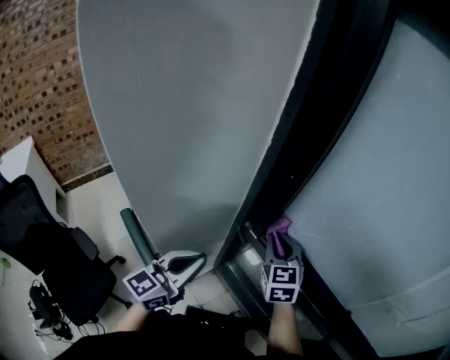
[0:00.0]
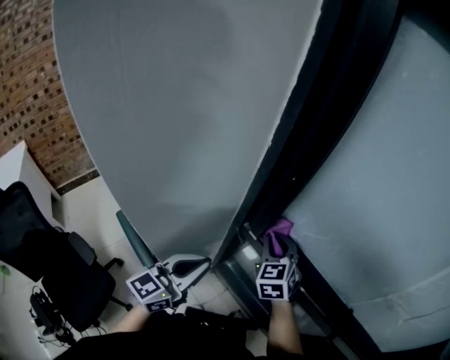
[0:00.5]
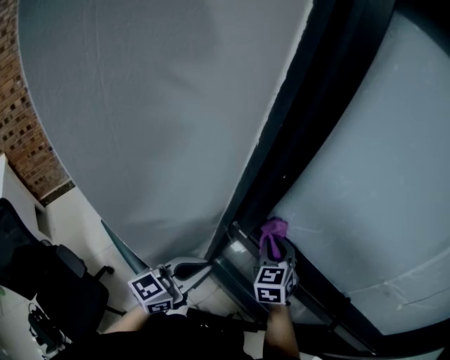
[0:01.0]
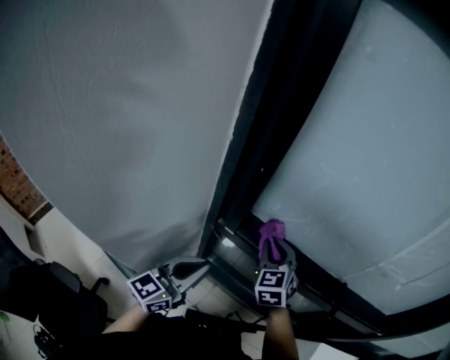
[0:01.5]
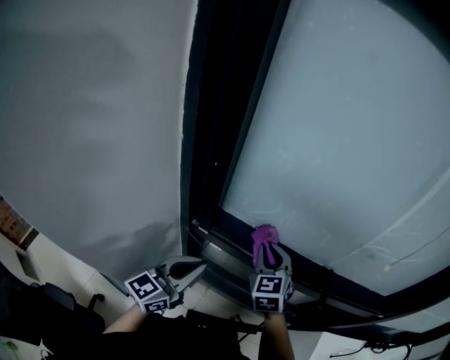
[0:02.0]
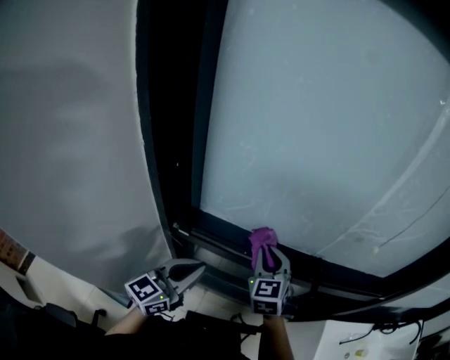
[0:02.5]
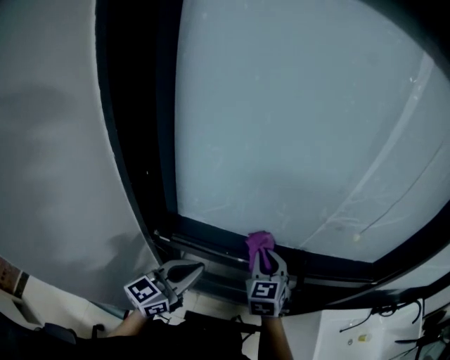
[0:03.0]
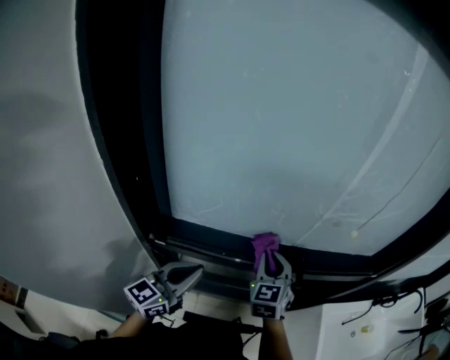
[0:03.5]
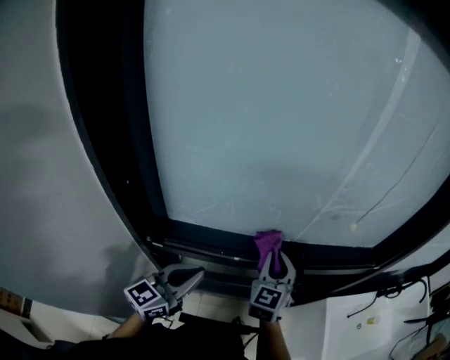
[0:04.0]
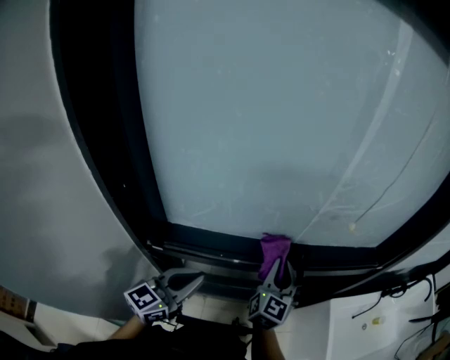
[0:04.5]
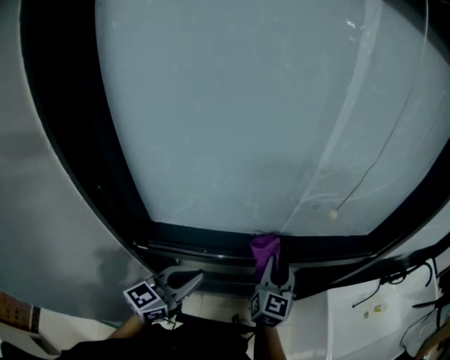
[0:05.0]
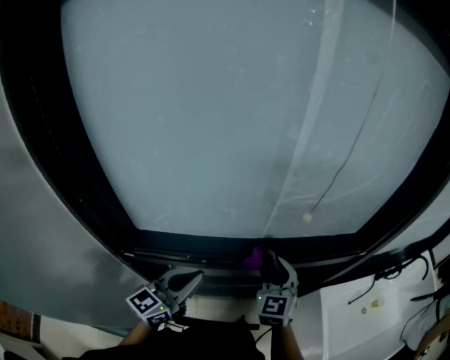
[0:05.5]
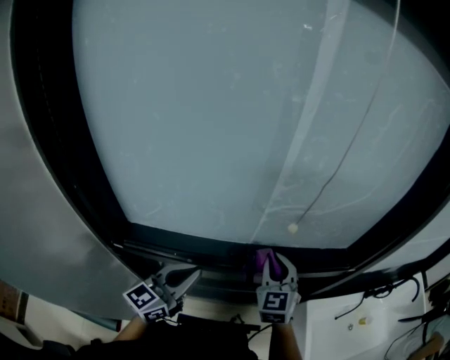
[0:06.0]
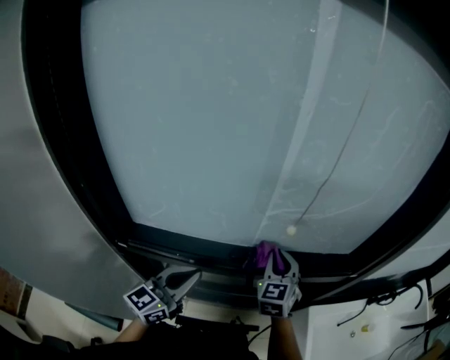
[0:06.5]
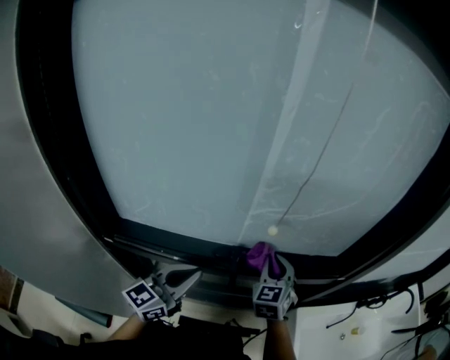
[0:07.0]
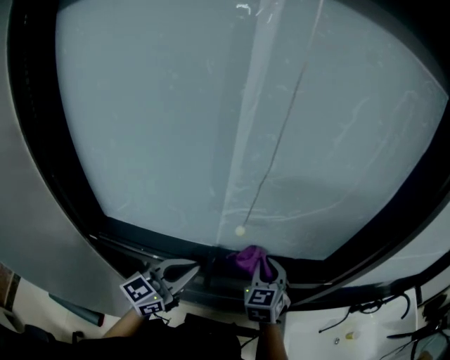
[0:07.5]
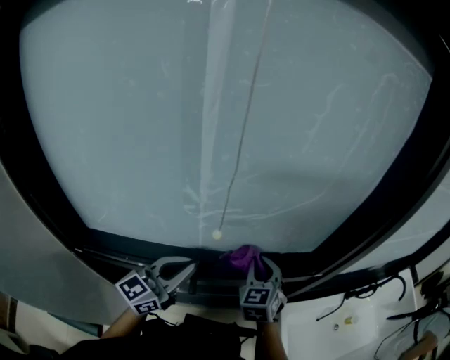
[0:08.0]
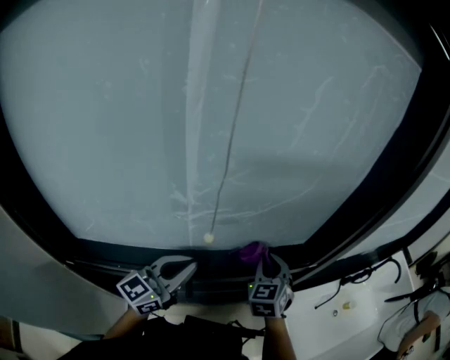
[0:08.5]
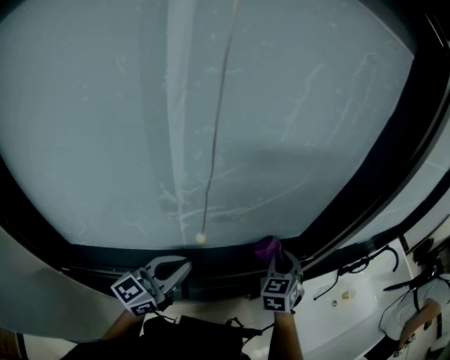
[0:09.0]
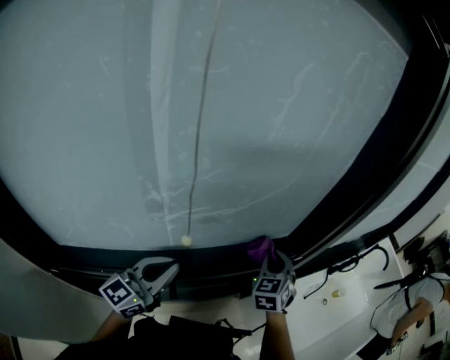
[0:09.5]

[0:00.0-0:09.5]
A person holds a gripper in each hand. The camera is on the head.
0:00.0 to 0:02.0: The right gripper moves approximately 15 cm, and turns by about 30 degrees. Meanwhile the left gripper shifts by about 10 cm, and changes its angle by roughly 30 degrees.
0:02.0 to 0:04.0: The left gripper travels to the right and forward by about 10 cm. The right gripper heads to the right, covering roughly 15 cm, and turns by approximately 30 degrees.
0:04.0 to 0:05.5: The grippers both shift to the right by about 10 cm.
0:05.5 to 0:07.5: The left gripper is displaced to the right and forward by approximately 15 cm; the right gripper travels forward and to the right by approximately 10 cm.
0:07.5 to 0:09.5: The left gripper shifts some 5 cm forward, while the right gripper travels to the right and forward by roughly 15 cm, and turns by roughly 20 degrees.

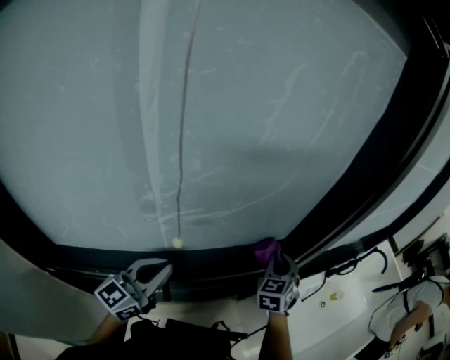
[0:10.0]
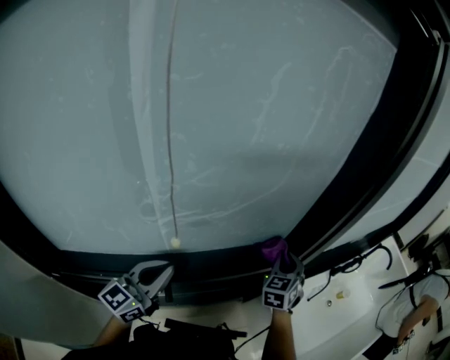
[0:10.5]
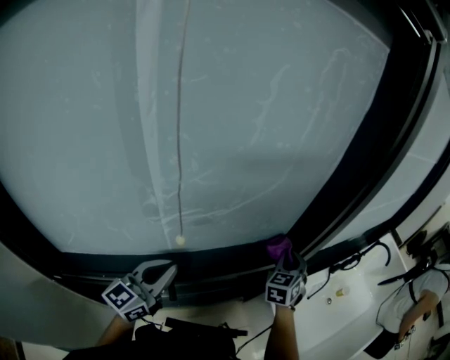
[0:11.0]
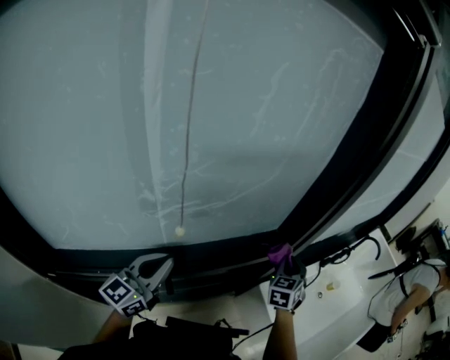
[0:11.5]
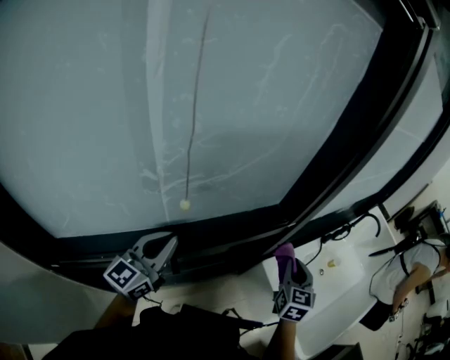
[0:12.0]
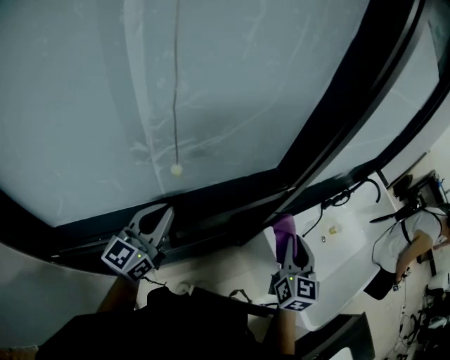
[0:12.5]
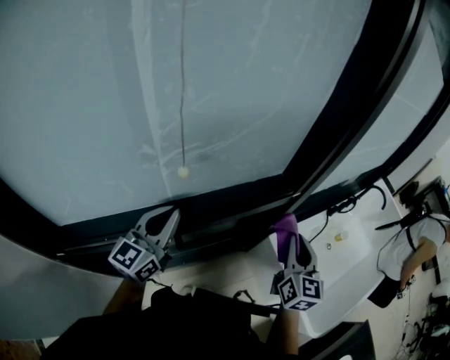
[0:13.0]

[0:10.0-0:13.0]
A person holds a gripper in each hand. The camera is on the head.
0:10.0 to 0:11.5: The right gripper is displaced to the right by about 10 cm.
0:11.5 to 0:13.0: The right gripper shifts about 15 cm backward, and turns by approximately 40 degrees.

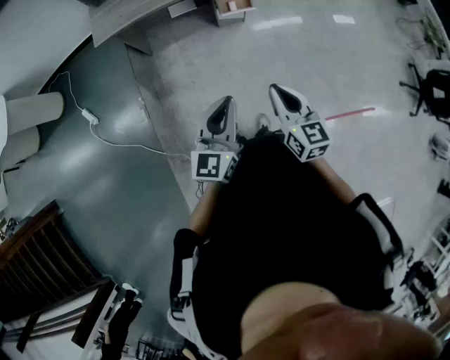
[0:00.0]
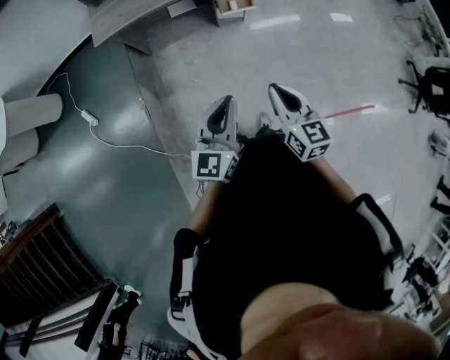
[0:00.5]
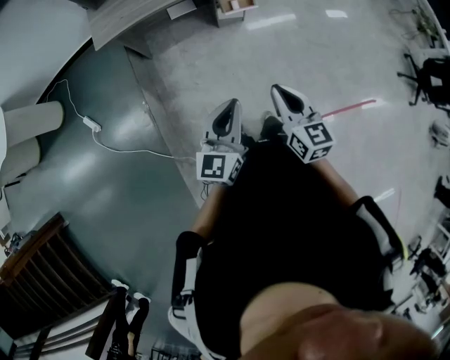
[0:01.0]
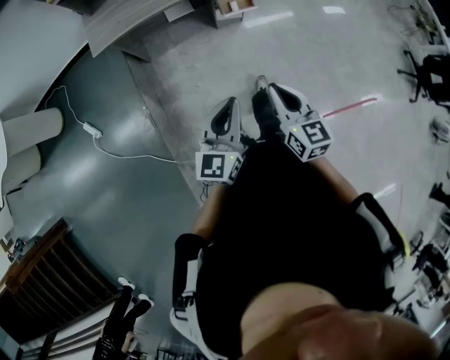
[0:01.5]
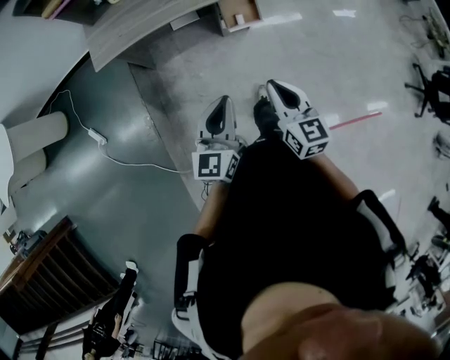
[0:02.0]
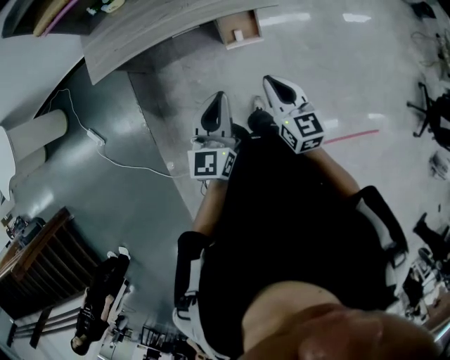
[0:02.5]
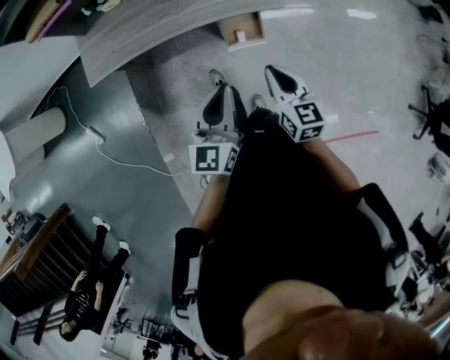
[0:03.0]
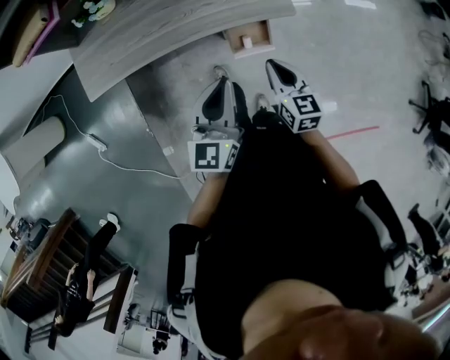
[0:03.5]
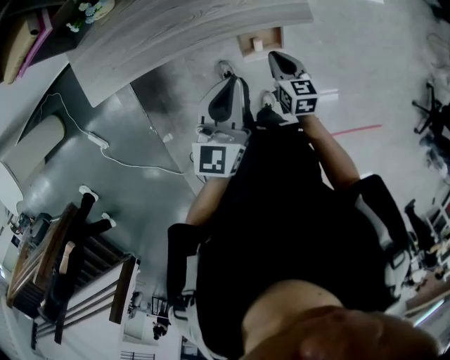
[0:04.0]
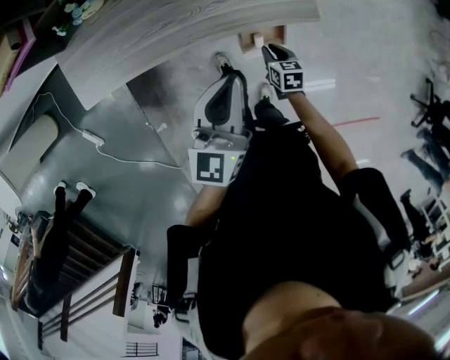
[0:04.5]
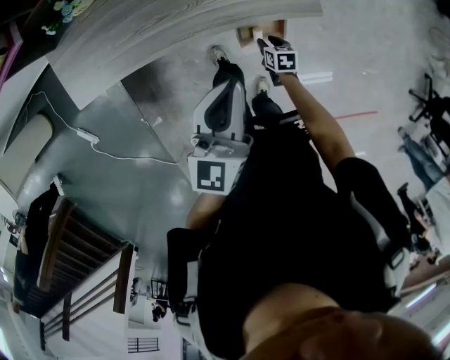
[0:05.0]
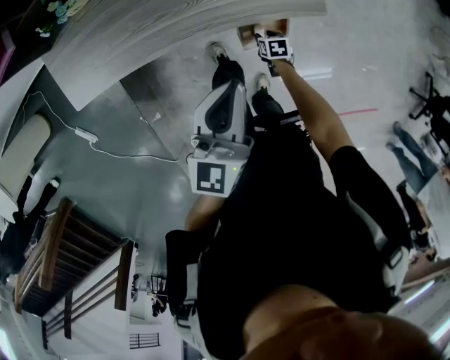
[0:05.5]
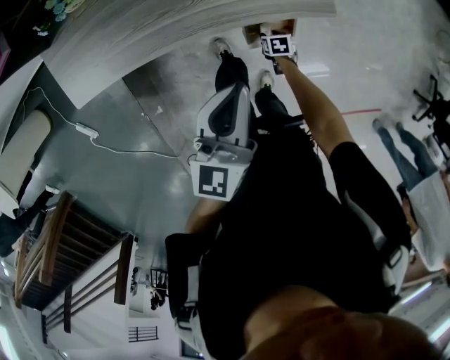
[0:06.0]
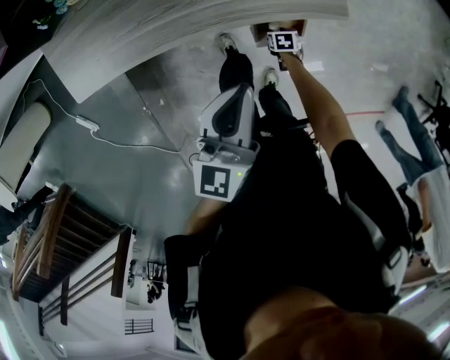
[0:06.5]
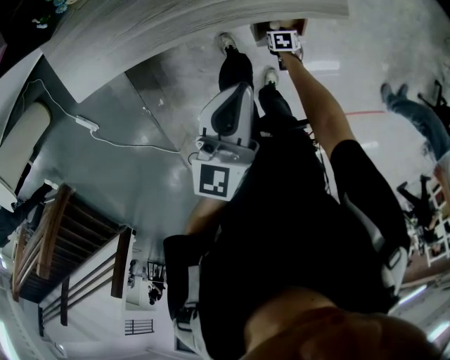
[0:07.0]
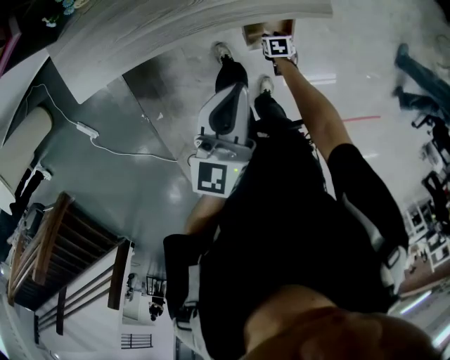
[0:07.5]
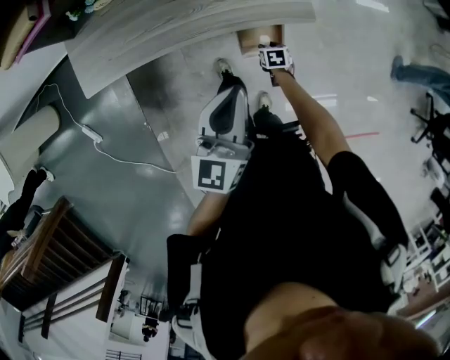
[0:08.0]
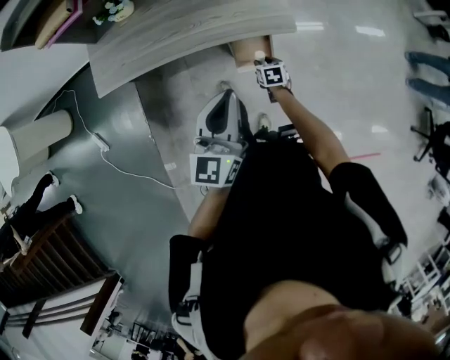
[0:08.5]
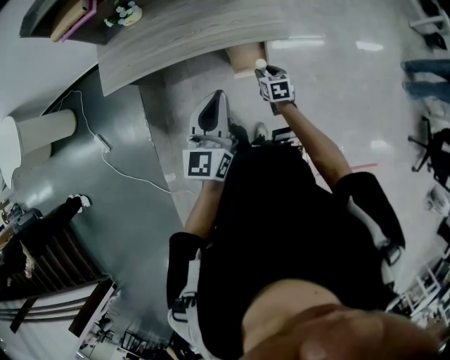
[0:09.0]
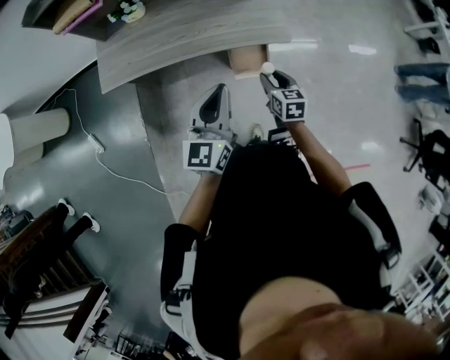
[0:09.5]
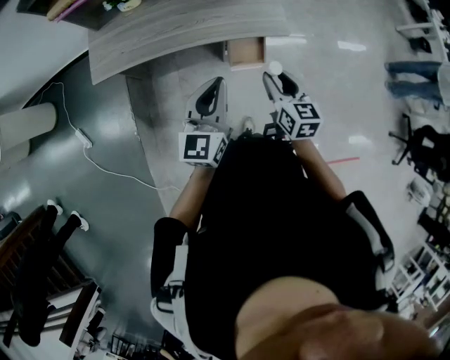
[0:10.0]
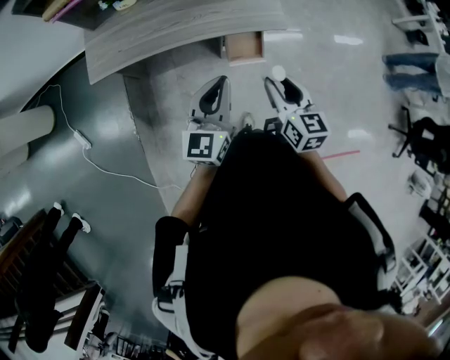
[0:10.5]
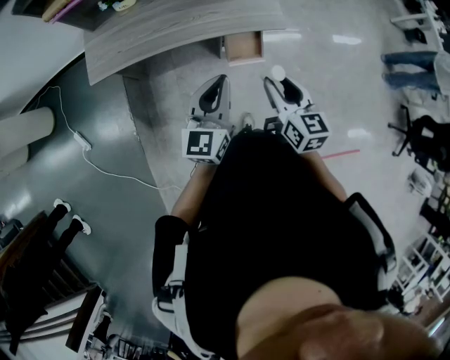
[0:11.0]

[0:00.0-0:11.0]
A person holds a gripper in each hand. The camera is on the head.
0:00.0 to 0:02.0: Both grippers move forward, roughly 15 cm.
0:02.0 to 0:03.5: The two grippers go approximately 35 cm forward.
0:03.5 to 0:05.5: The right gripper heads downward, covering about 40 cm, tilts its fingers approximately 40 degrees downward, and opens. Meanwhile the left gripper ends up some 10 cm from where it was.
0:07.5 to 0:09.0: The left gripper travels backward and upward by some 20 cm. The right gripper travels upward by about 30 cm, and turns by about 30 degrees.
0:09.0 to 0:11.0: The left gripper heads to the left, covering approximately 5 cm; the right gripper shifts some 30 cm upward and backward, and rotates some 30 degrees.

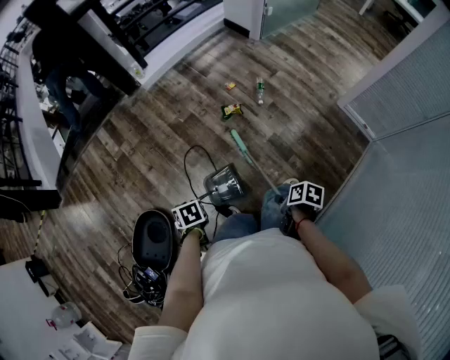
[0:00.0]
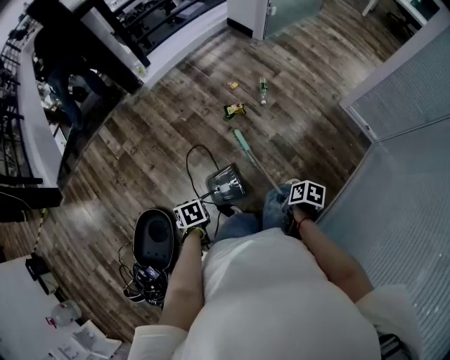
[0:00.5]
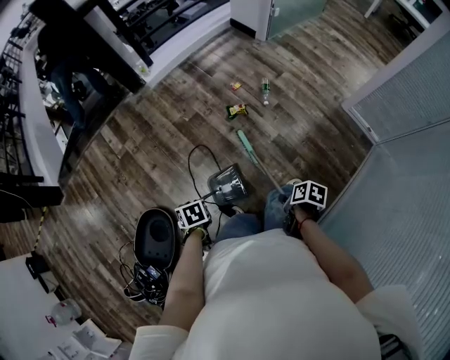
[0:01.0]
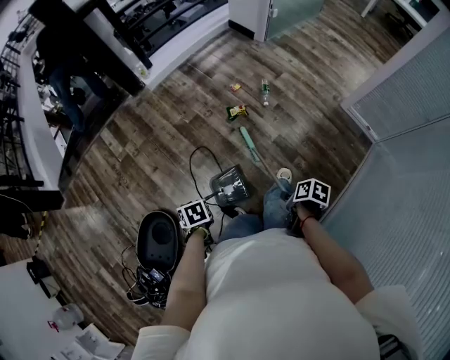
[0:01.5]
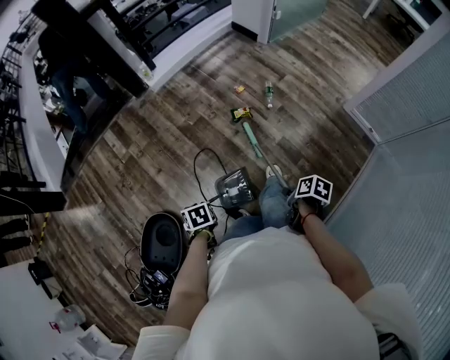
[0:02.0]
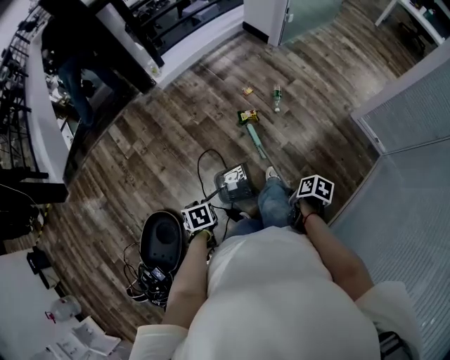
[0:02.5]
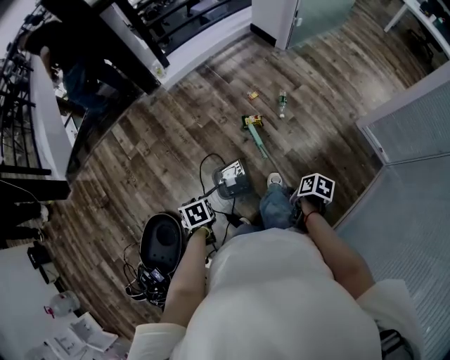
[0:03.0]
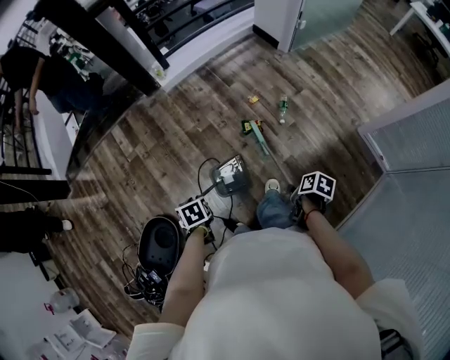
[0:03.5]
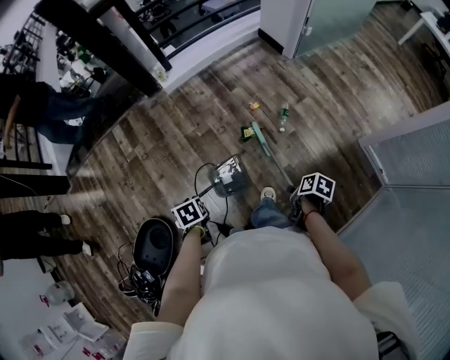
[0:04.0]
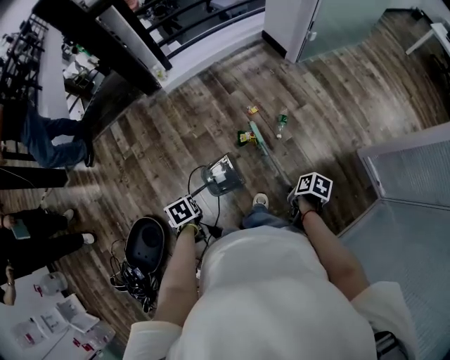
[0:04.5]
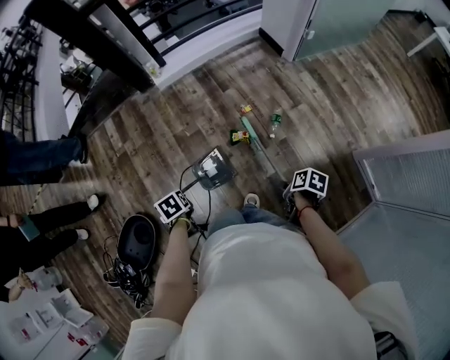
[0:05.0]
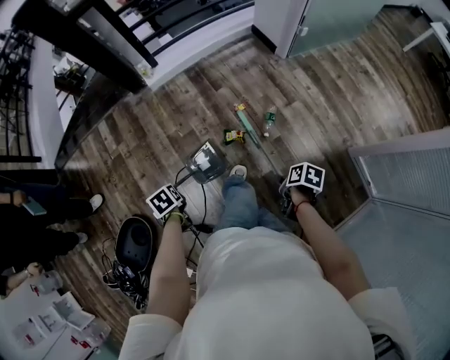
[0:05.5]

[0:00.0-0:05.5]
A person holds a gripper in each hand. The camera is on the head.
0:02.0 to 0:03.5: The left gripper shifts by roughly 15 cm.
0:03.5 to 0:05.5: The left gripper shifts by some 15 cm.
